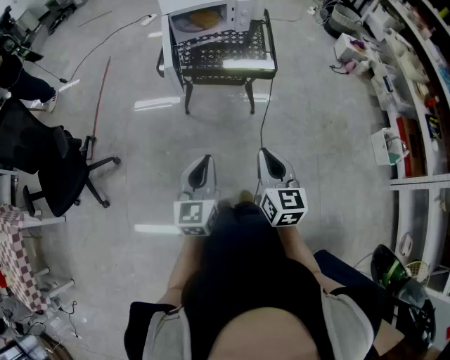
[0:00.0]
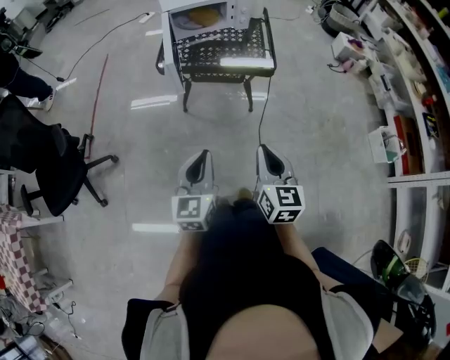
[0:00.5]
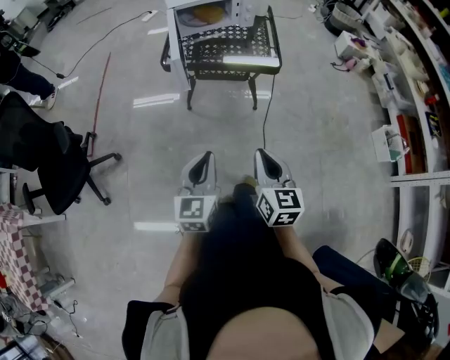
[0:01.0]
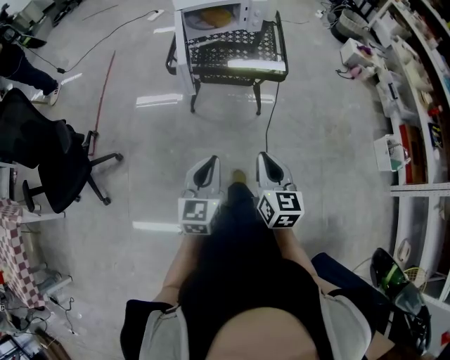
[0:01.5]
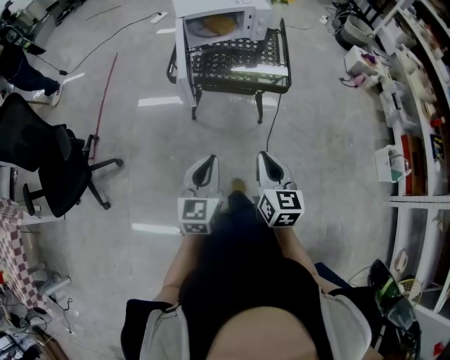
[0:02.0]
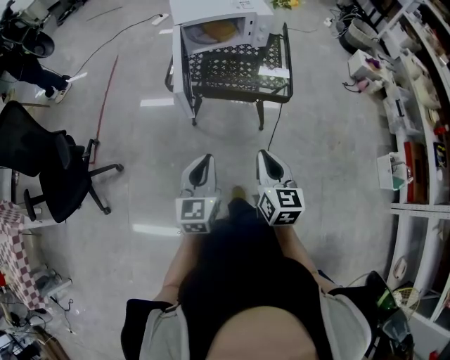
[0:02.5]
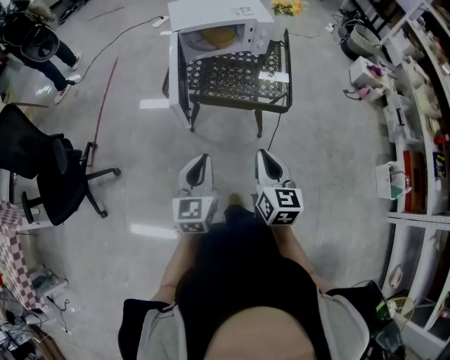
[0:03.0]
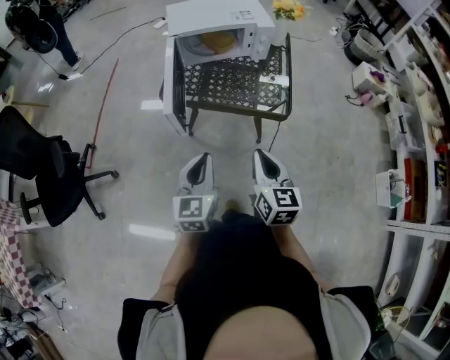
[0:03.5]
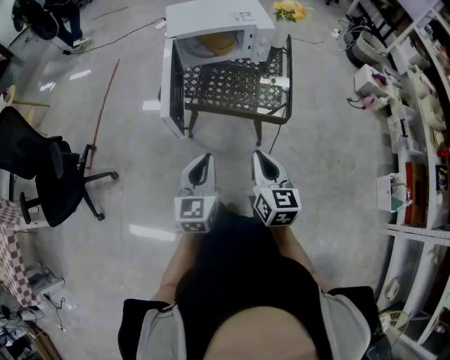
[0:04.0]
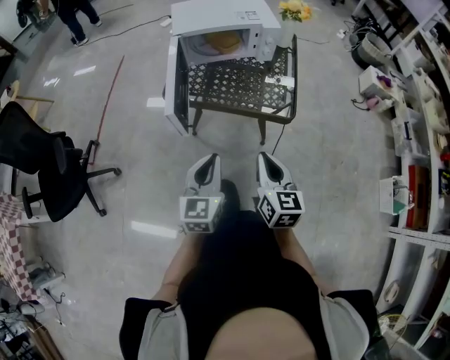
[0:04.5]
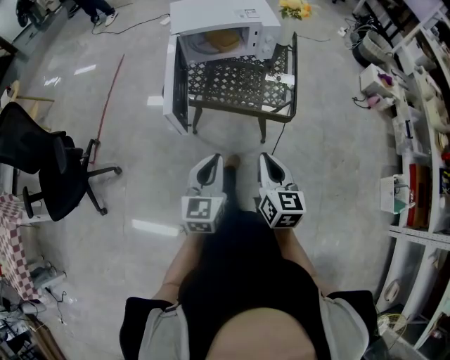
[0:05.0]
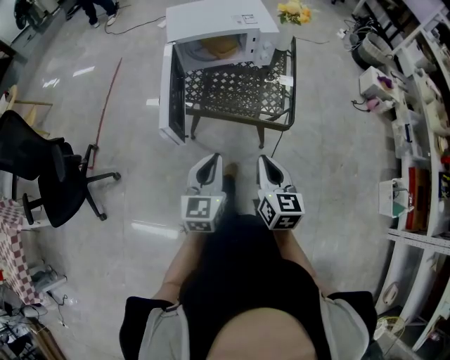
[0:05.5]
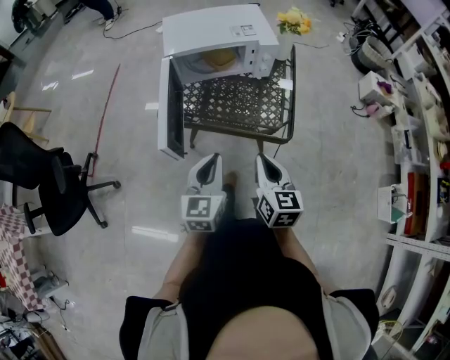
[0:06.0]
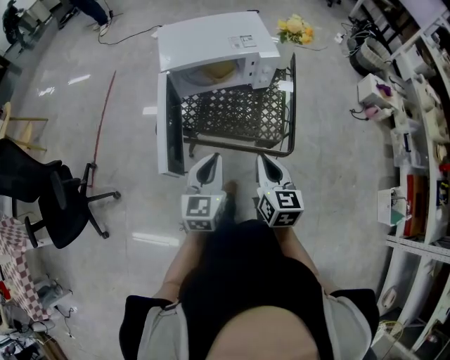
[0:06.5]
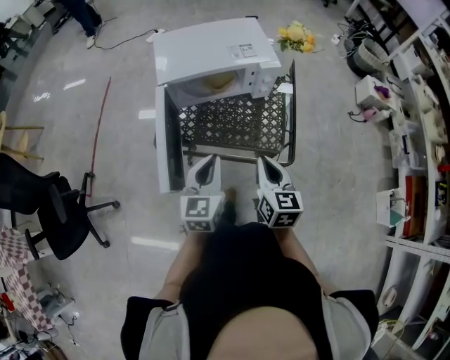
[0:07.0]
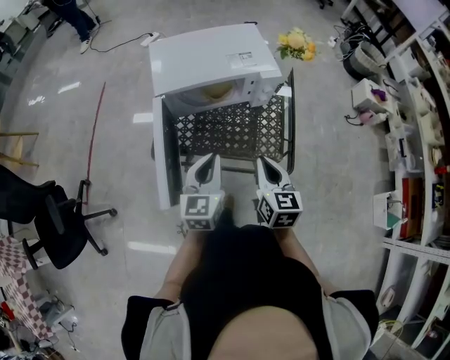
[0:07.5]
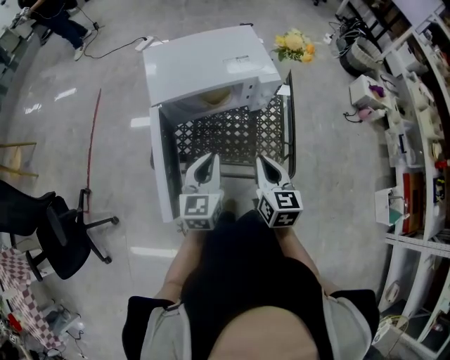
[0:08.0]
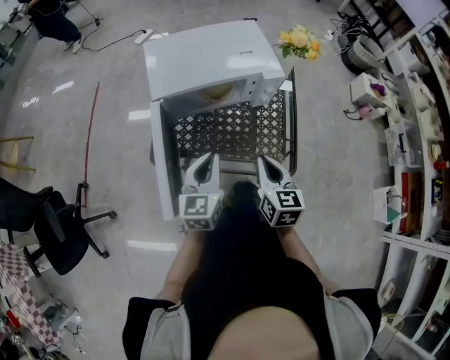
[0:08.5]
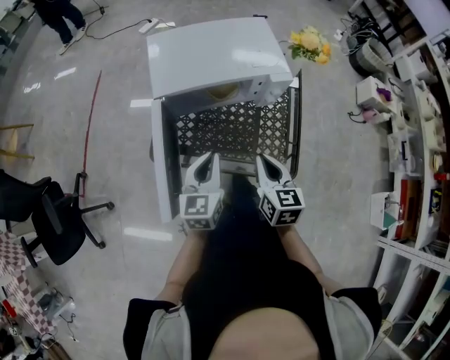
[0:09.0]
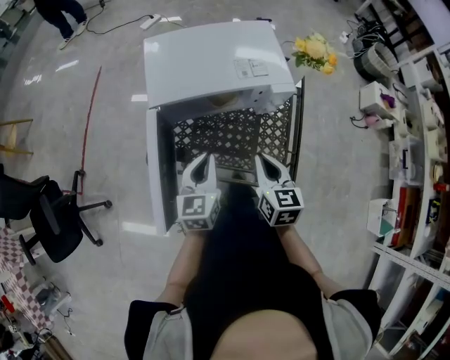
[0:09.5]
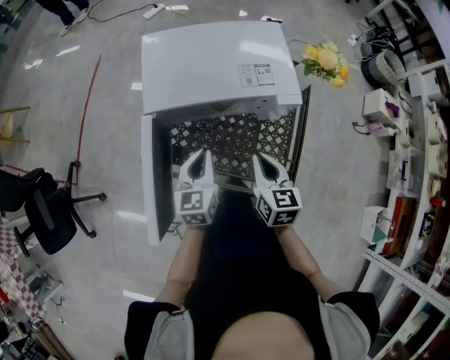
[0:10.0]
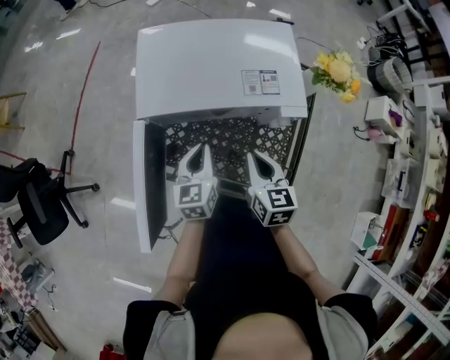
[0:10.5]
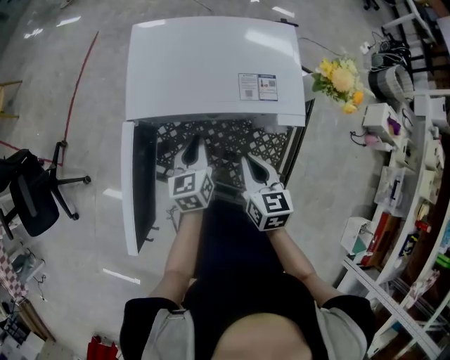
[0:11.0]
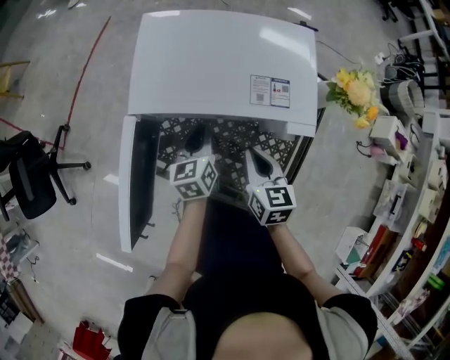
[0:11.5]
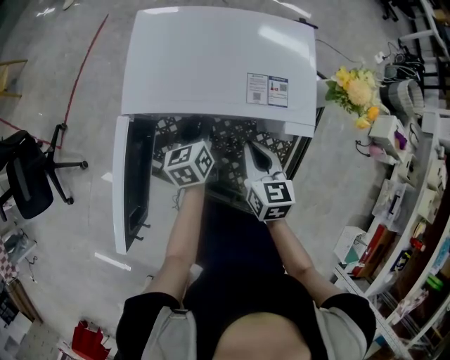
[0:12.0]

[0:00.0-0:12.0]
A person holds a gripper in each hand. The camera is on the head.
0:00.0 to 0:02.0: The grippers both shift forward by roughly 5 cm.
0:02.0 to 0:04.0: Both grippers travel together forward, about 15 cm.
0:04.0 to 0:06.0: The grippers both shift forward by approximately 10 cm.
0:06.0 to 0:08.0: The grippers both shift forward by some 20 cm.
0:08.0 to 0:10.0: The left gripper travels forward and downward by approximately 10 cm; the right gripper is displaced forward by some 10 cm.
0:10.0 to 0:12.0: The grippers both shift forward and downward by approximately 15 cm. The left gripper changes its angle by some 30 degrees, and opens.

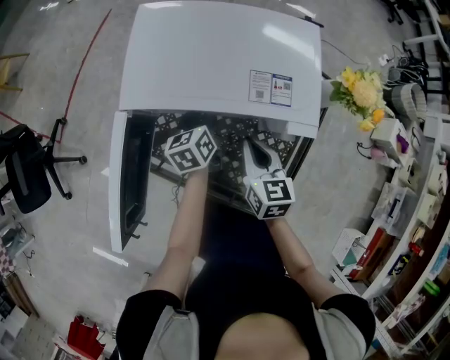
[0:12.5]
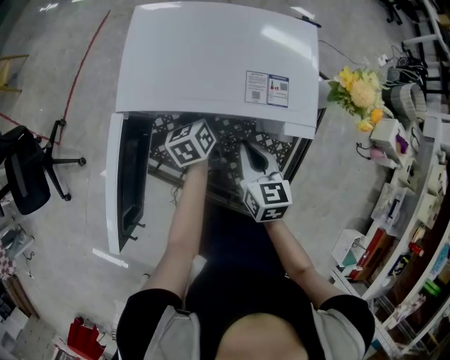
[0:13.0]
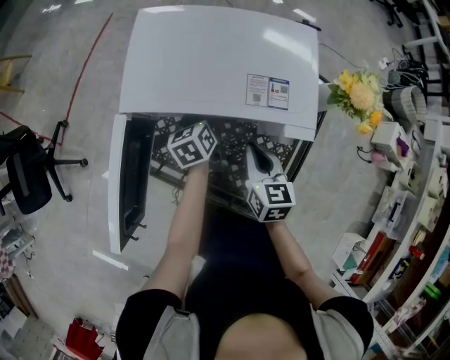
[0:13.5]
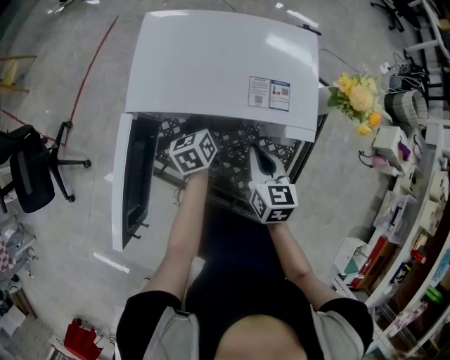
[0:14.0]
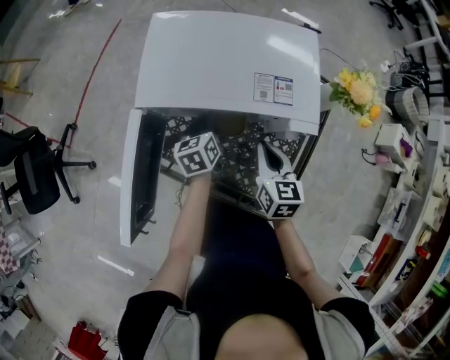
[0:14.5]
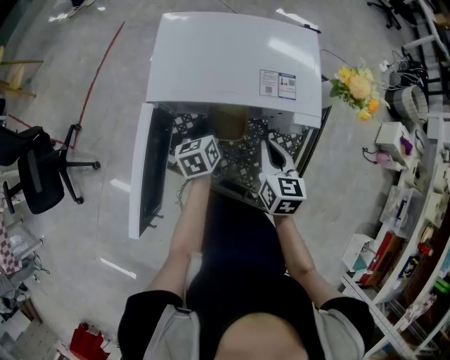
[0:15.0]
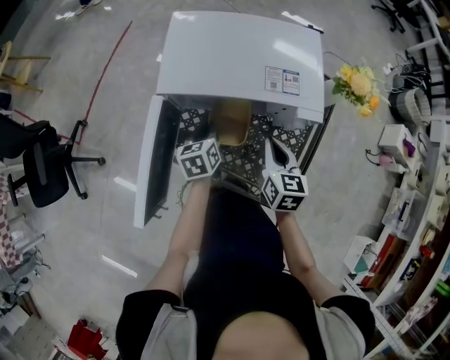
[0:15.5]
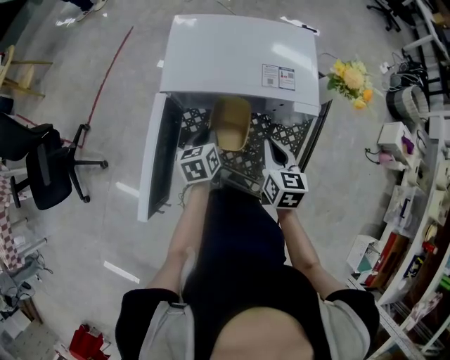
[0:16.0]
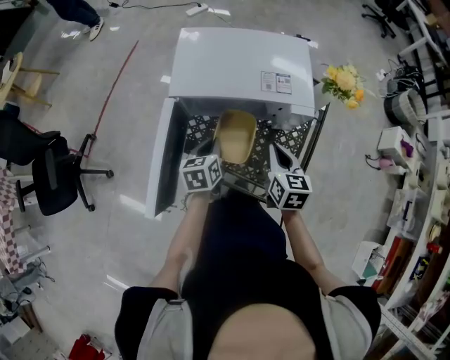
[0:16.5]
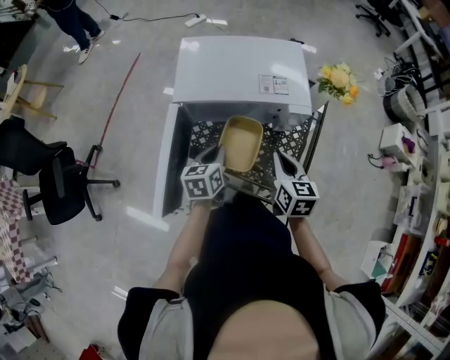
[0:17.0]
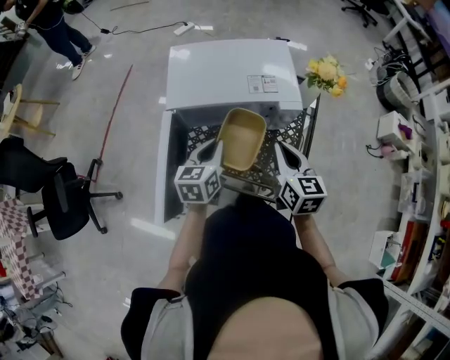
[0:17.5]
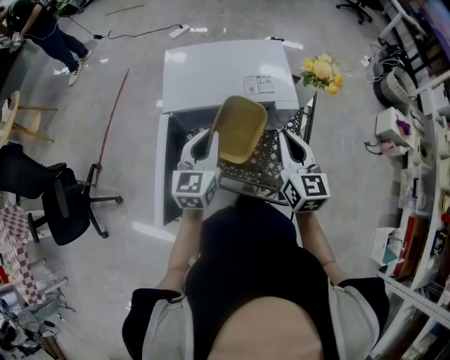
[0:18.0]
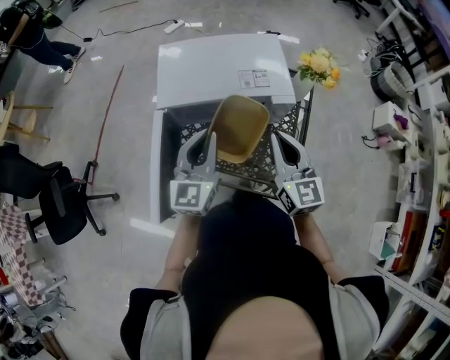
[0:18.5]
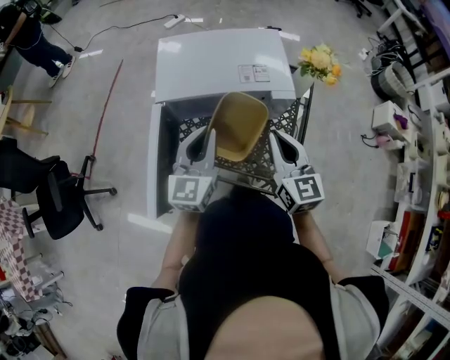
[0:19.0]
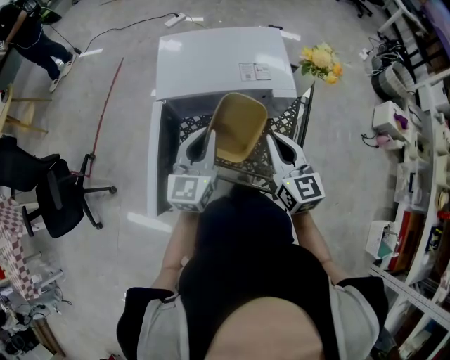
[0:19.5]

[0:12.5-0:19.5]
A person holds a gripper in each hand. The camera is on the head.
0:12.5 to 0:14.5: The left gripper closes up.
0:14.5 to 0:16.0: The left gripper moves backward, about 10 cm. The right gripper changes place by approximately 5 cm.
0:16.0 to 0:17.5: The two grippers go some 10 cm upward. The left gripper turns by approximately 20 degrees.
0:17.5 to 0:19.5: The left gripper travels upward by roughly 5 cm, and turns by about 20 degrees.

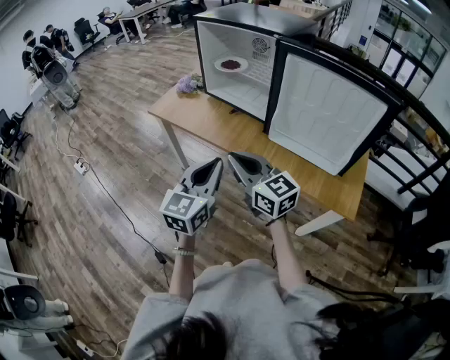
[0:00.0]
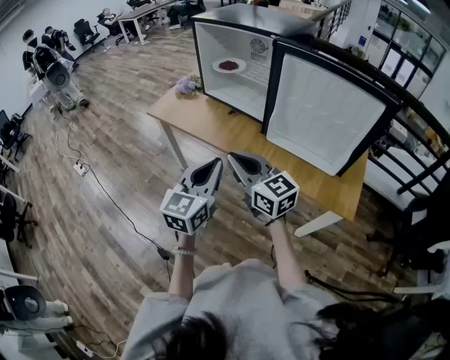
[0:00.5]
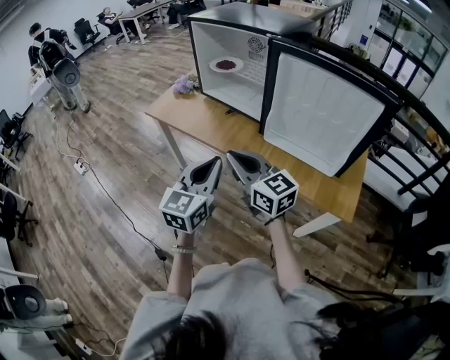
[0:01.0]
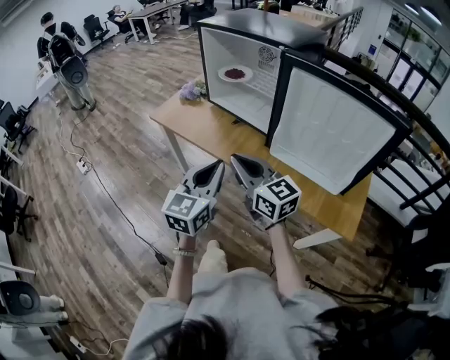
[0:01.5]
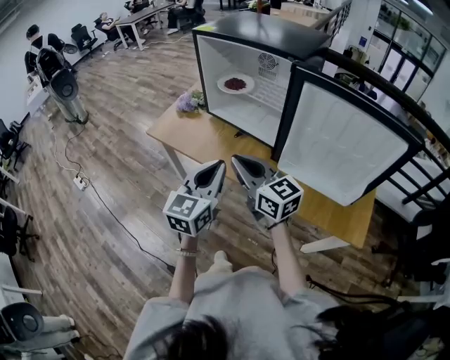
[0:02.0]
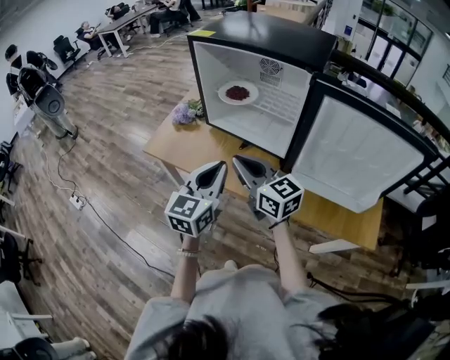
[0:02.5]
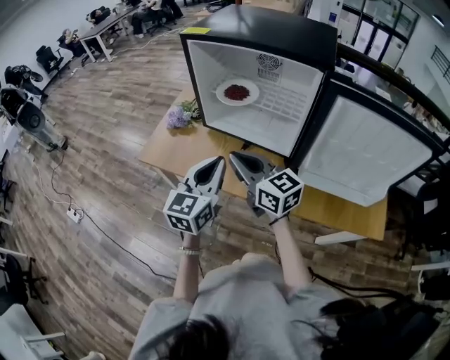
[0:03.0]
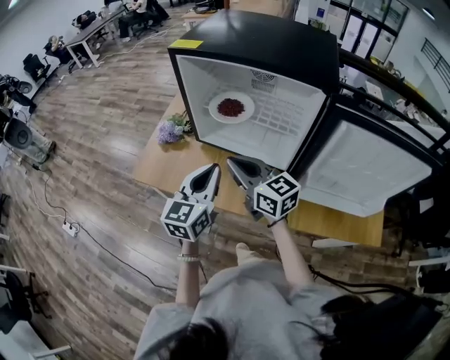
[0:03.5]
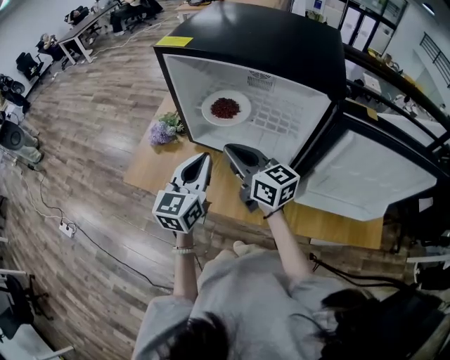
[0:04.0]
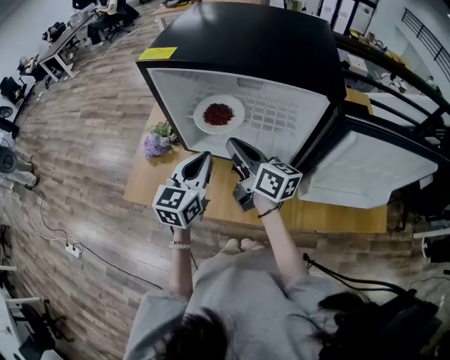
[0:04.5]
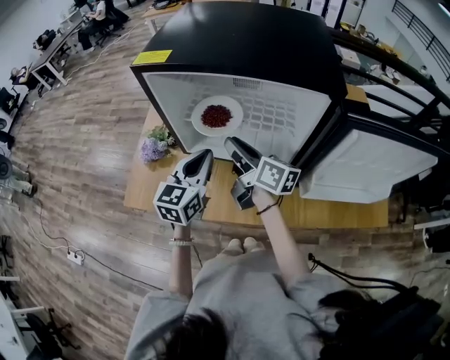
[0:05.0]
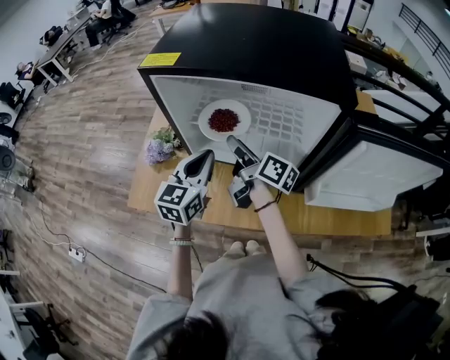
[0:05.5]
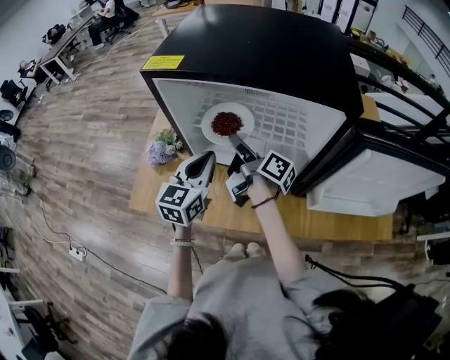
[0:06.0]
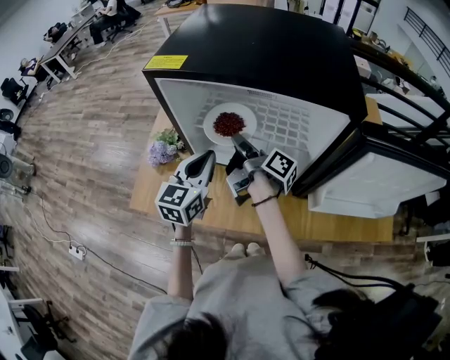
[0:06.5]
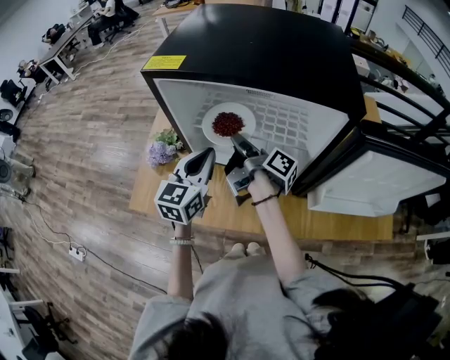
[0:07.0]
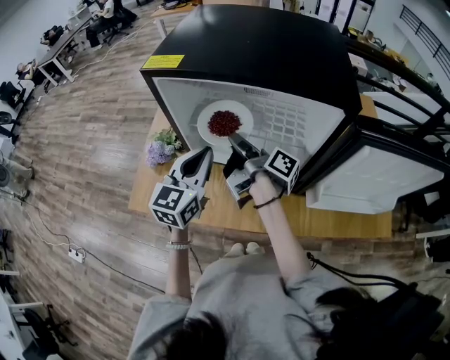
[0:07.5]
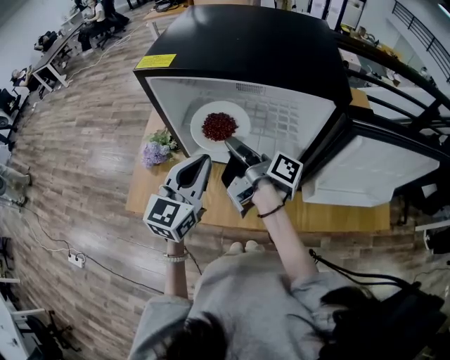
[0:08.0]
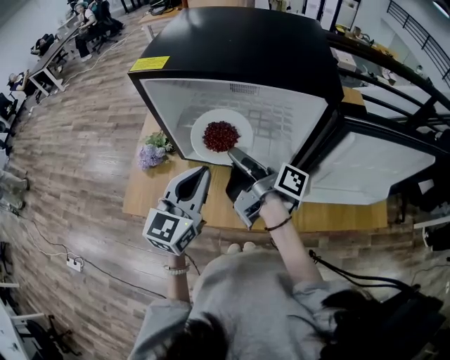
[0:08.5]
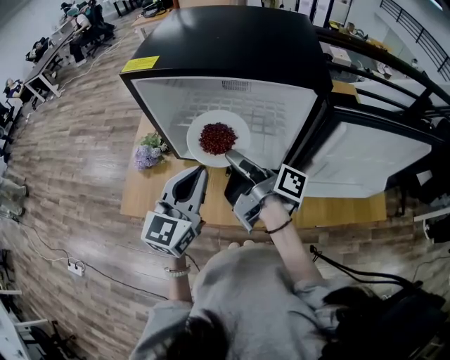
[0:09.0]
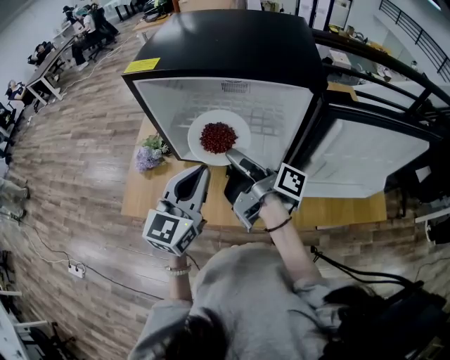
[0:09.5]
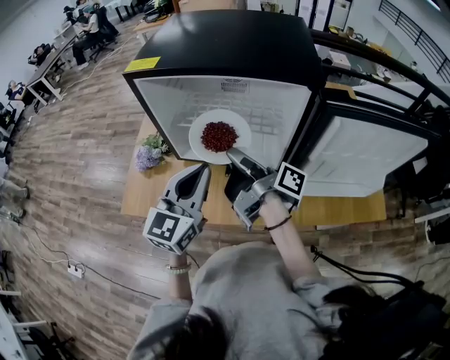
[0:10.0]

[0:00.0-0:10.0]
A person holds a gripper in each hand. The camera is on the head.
0:00.0 to 0:02.0: The two grippers go approximately 15 cm forward.
0:02.0 to 0:04.0: The grippers both shift forward by roughly 25 cm.
0:04.0 to 0:06.0: Both grippers move forward, some 10 cm. The right gripper rotates around the line of its fingers by roughly 60 degrees, clockwise from behind, and opens.
0:06.0 to 0:08.0: The right gripper shifts by approximately 5 cm, and closes its fingers; the left gripper travels upward by approximately 5 cm.
0:08.0 to 0:10.0: The left gripper ends up approximately 5 cm from where it was, while the right gripper moves backward, approximately 5 cm.
